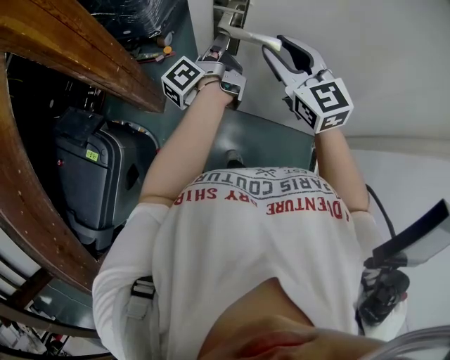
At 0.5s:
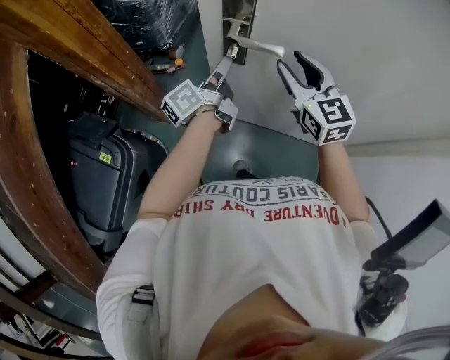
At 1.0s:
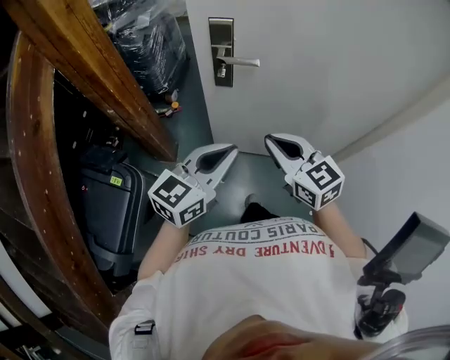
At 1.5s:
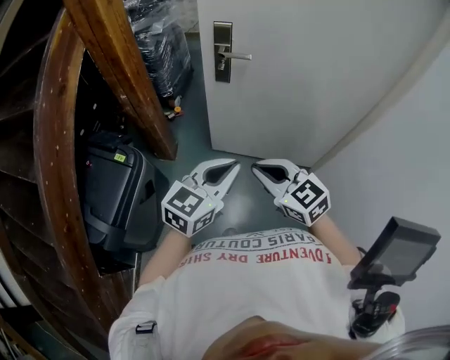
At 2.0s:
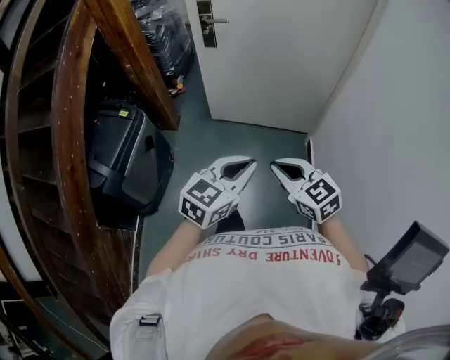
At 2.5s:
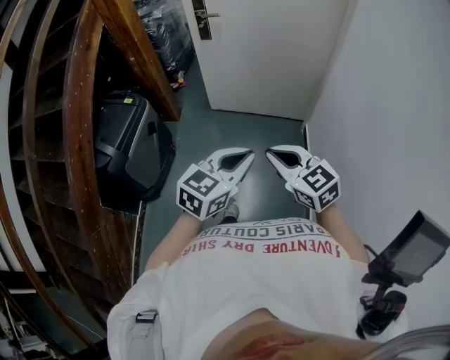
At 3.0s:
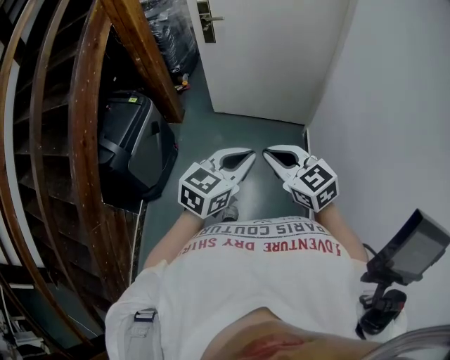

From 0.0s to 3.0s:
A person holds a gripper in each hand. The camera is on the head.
From 0.0s to 1.5s: Both grippers are carried backward, some 50 cm. The right gripper closes up, while the left gripper rotates around the line of its fingers by some 80 degrees, clockwise from behind, and opens, then closes again.
From 1.5s to 3.0s: Both grippers are carried backward and to the right, roughly 50 cm.

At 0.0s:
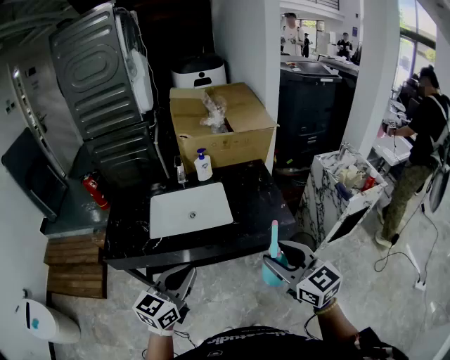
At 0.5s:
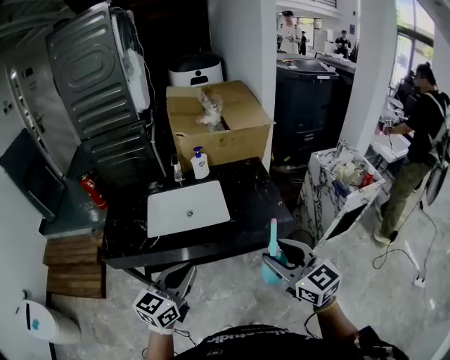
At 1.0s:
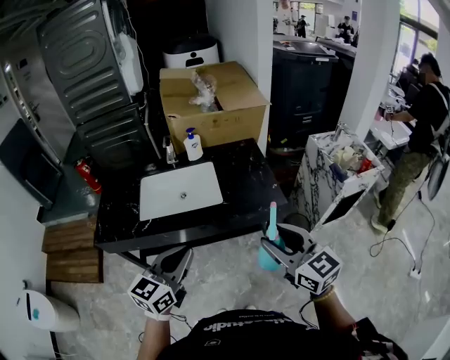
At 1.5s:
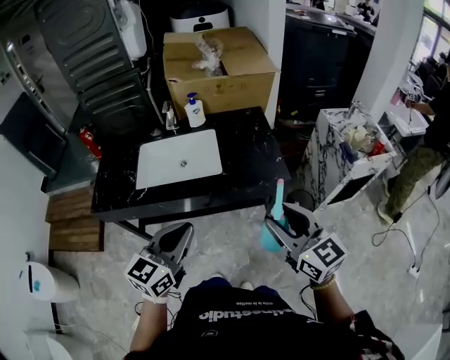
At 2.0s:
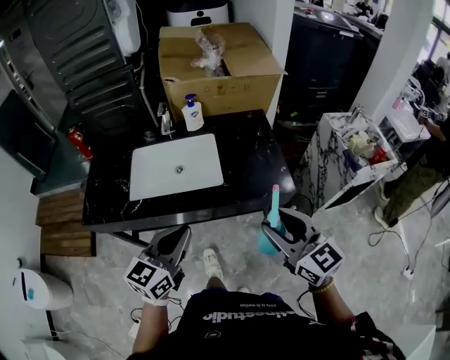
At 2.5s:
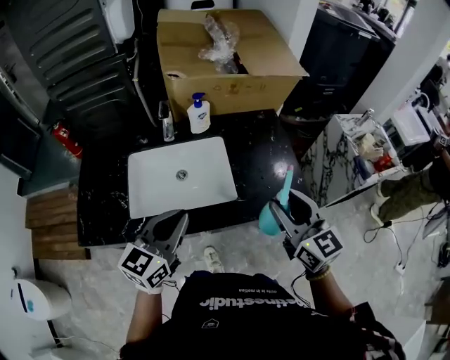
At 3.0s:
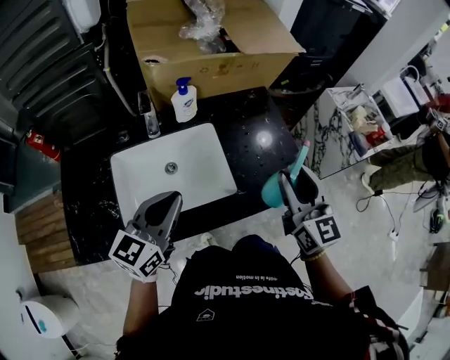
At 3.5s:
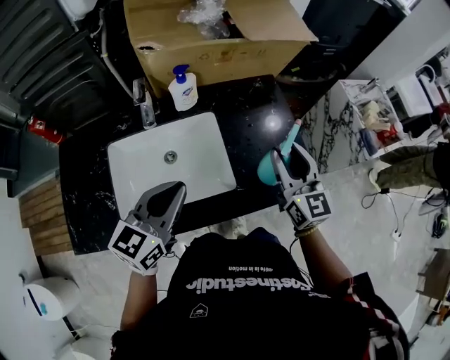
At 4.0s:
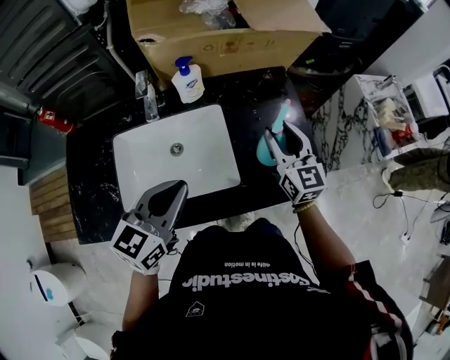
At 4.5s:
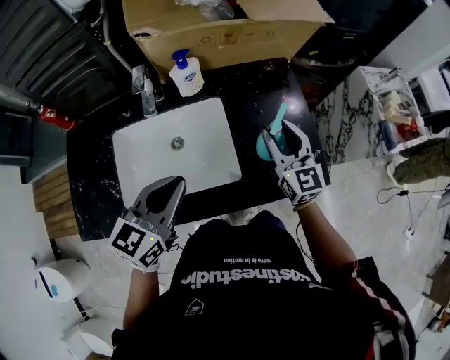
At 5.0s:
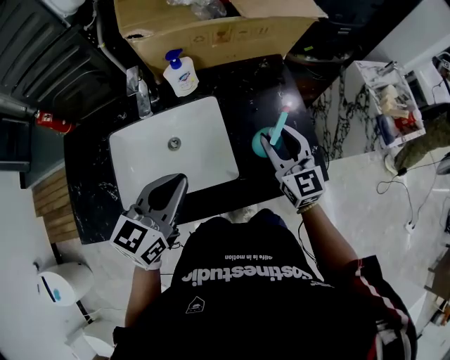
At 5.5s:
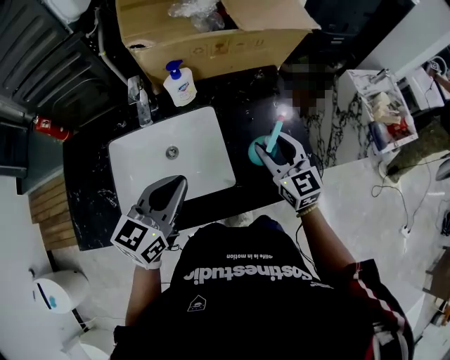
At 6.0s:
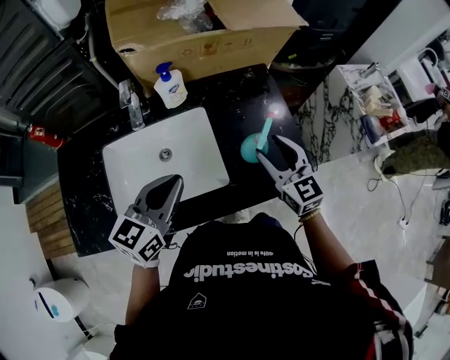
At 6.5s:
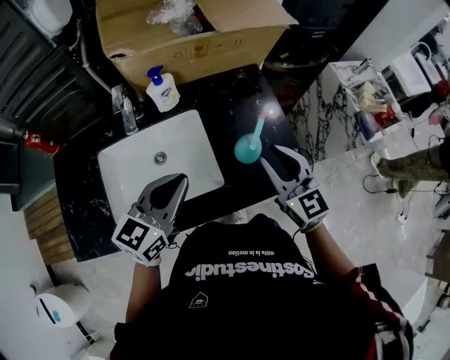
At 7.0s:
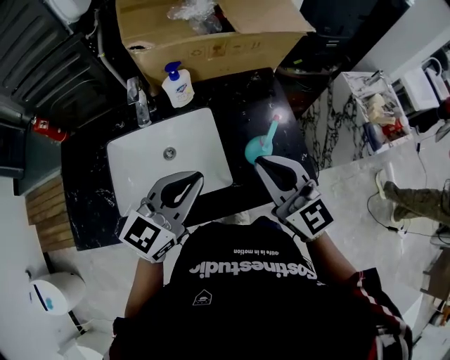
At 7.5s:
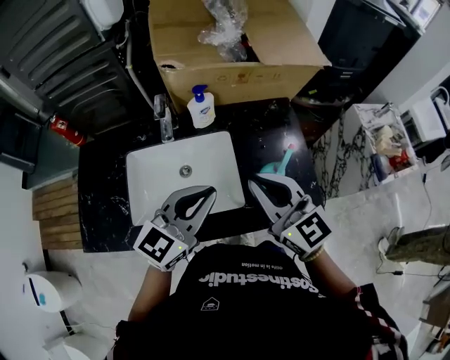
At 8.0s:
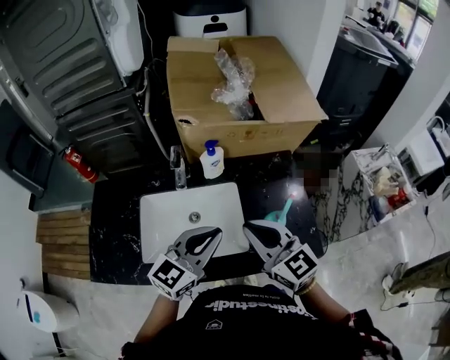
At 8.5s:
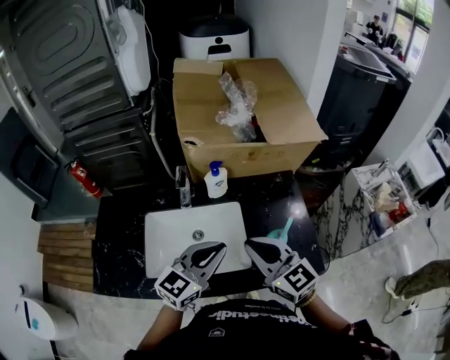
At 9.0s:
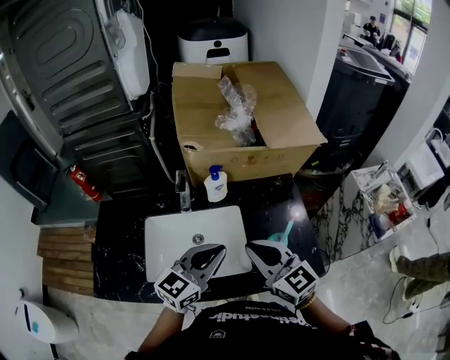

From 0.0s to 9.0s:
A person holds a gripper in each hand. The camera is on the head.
From 0.0s to 2.0s: Both grippers move forward, about 10 cm.
From 2.0s to 4.5s: The two grippers go about 30 cm forward.
From 4.5s to 7.0s: The left gripper travels to the right by roughly 5 cm; the right gripper shifts some 15 cm backward and upward, and closes.
From 7.0s to 9.0s: The right gripper goes some 10 cm to the left.

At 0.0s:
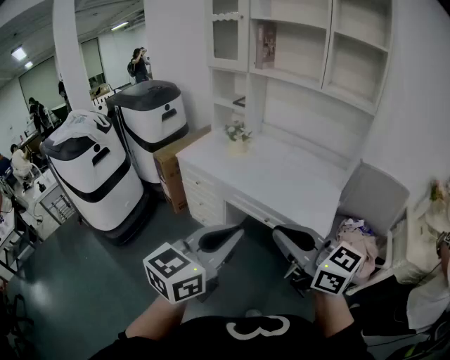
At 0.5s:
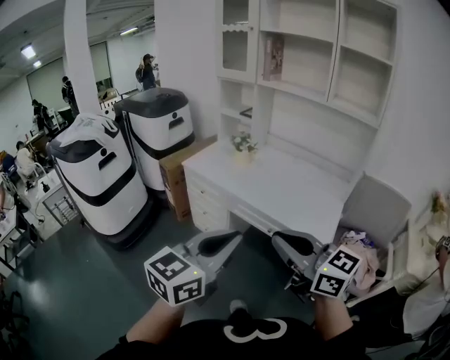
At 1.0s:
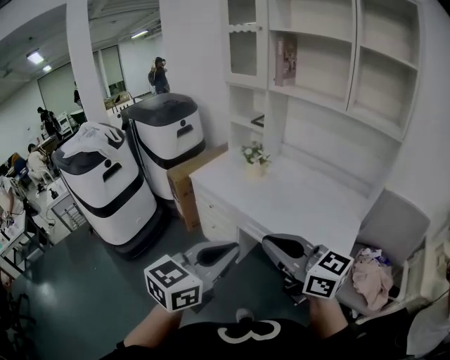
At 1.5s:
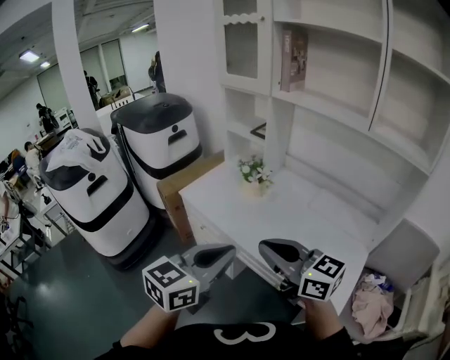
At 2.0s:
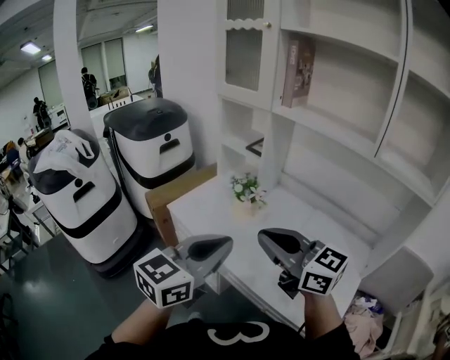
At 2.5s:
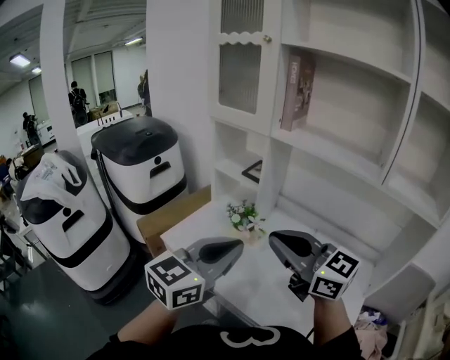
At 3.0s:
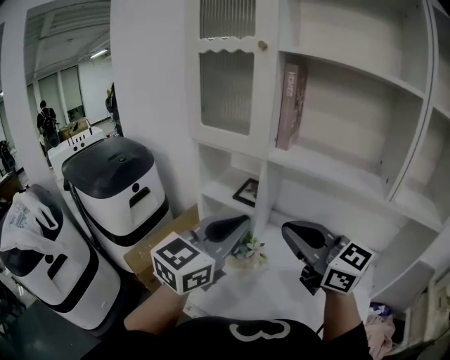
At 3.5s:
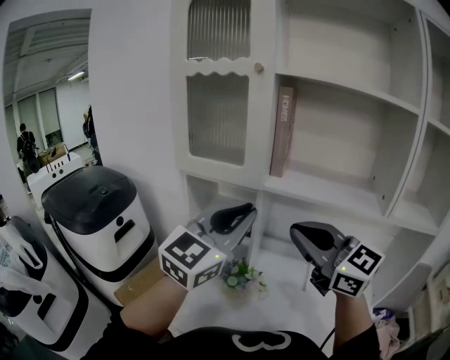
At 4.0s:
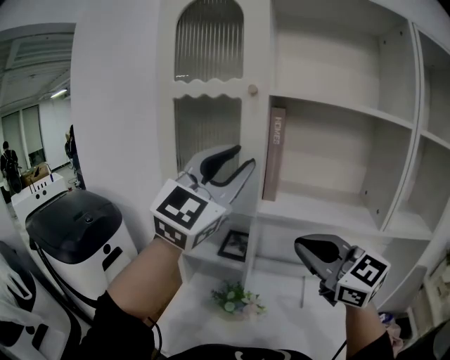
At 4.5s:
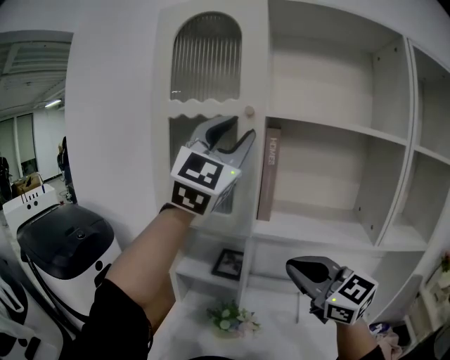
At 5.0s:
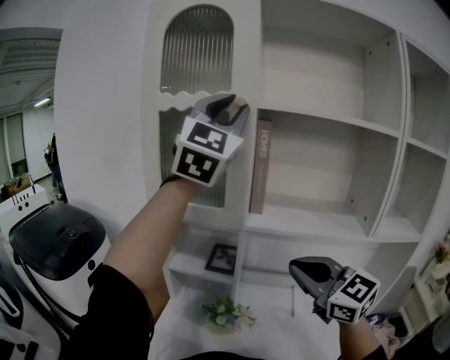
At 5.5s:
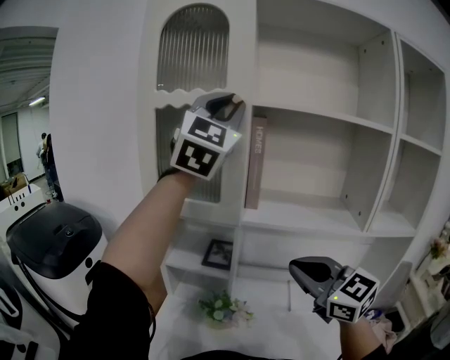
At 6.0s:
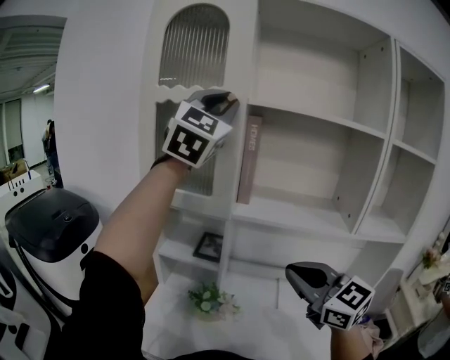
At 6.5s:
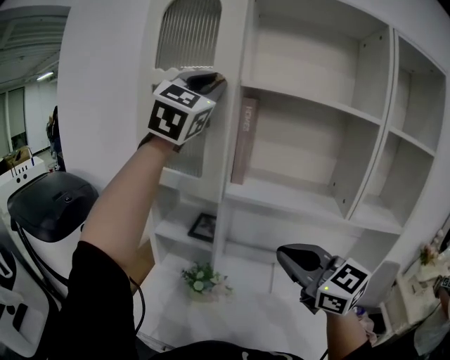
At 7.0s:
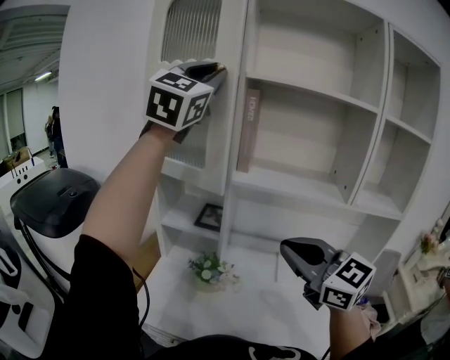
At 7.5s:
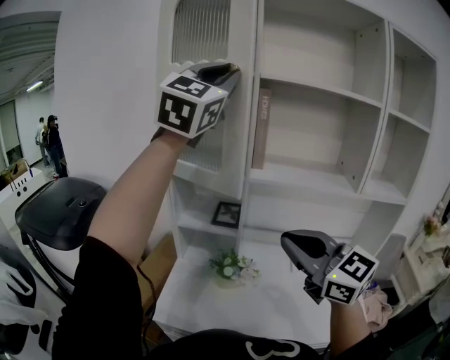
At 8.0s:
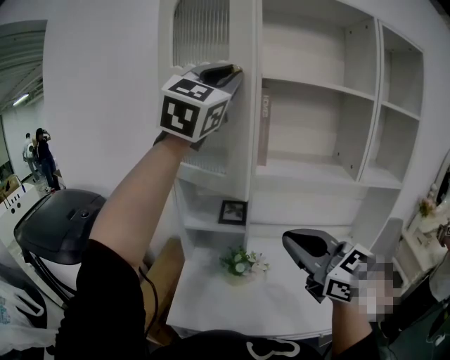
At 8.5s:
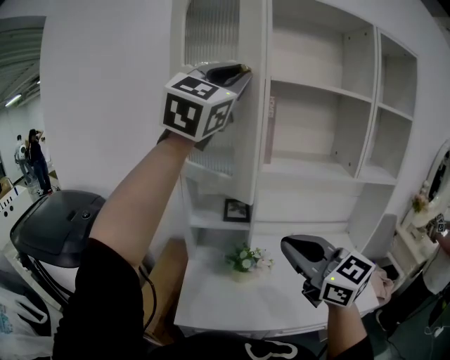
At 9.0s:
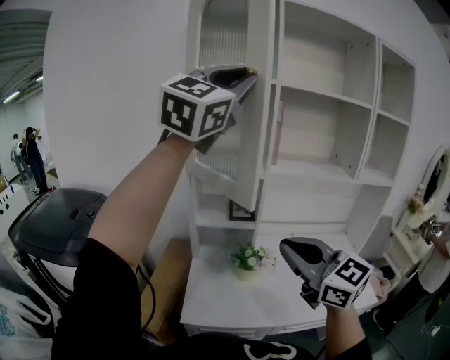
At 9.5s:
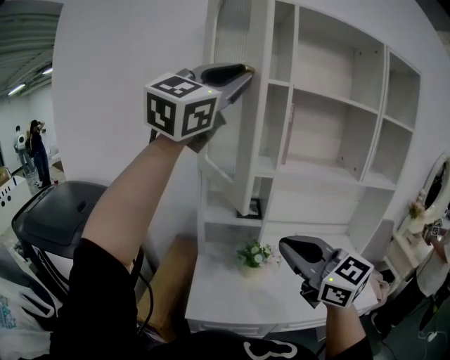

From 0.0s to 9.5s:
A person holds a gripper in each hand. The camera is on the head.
From 0.0s to 2.0s: The two grippers go some 40 cm forward.
From 2.0s to 4.0s: The right gripper ends up about 35 cm from where it was, and swivels approximately 40 degrees. The left gripper ends up approximately 50 cm from where it was, turns by approximately 50 degrees, and opens.
From 4.0s to 5.5s: The left gripper is displaced upward and forward by about 15 cm.
From 5.5s to 7.5s: Both grippers travel together backward and to the left, some 10 cm.
From 7.5s to 9.5s: The two grippers go some 20 cm to the left and backward. The left gripper swivels about 20 degrees.

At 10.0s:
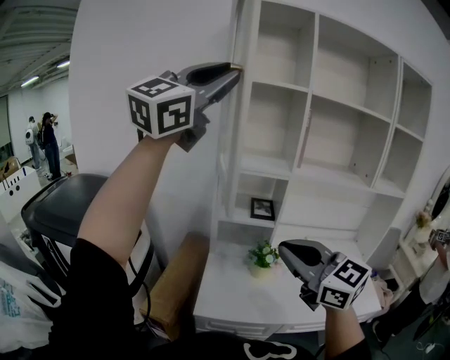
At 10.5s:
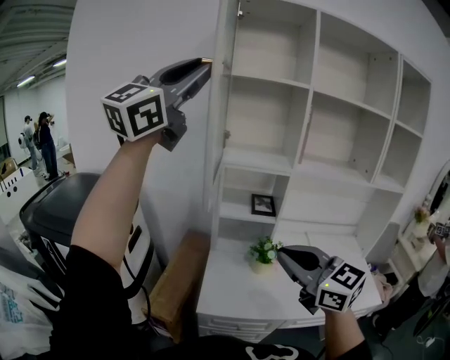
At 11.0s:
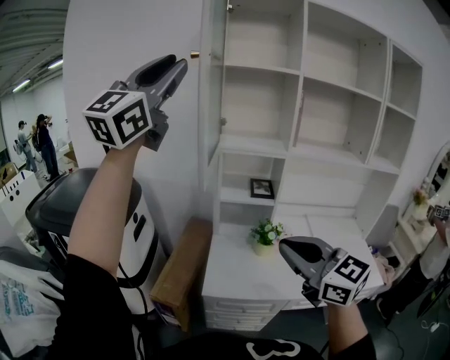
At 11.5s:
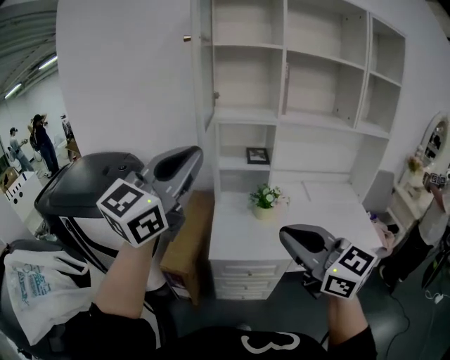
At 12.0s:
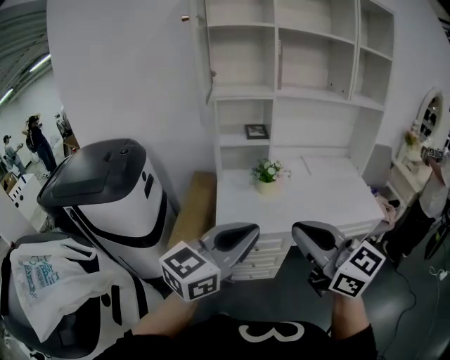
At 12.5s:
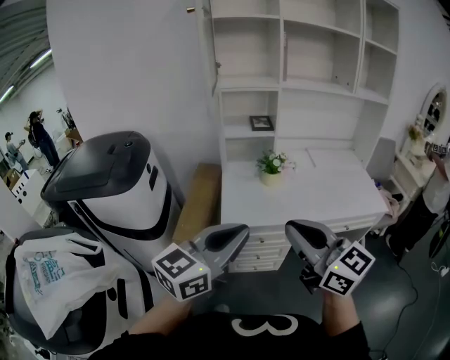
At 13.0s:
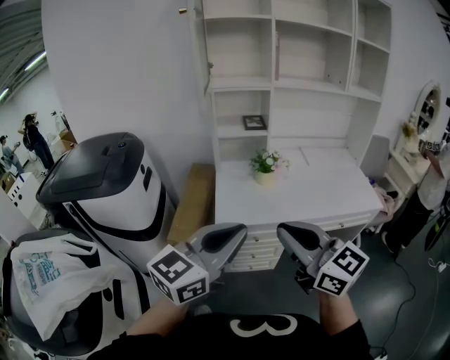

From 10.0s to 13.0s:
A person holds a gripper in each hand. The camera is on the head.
From 10.0s to 11.5s: The right gripper moves backward, approximately 20 cm, while the left gripper is displaced downward and backward by approximately 30 cm, and swivels some 20 degrees.
From 11.5s to 13.0s: The left gripper moves downward and backward, roughly 25 cm, and turns by some 30 degrees. The right gripper is displaced backward and downward by some 10 cm.

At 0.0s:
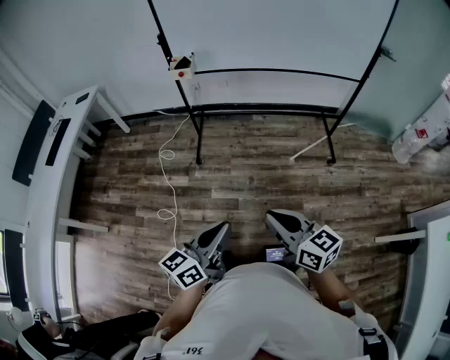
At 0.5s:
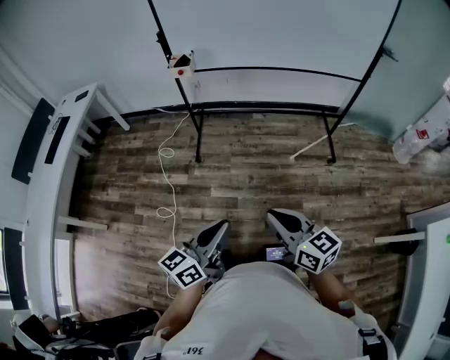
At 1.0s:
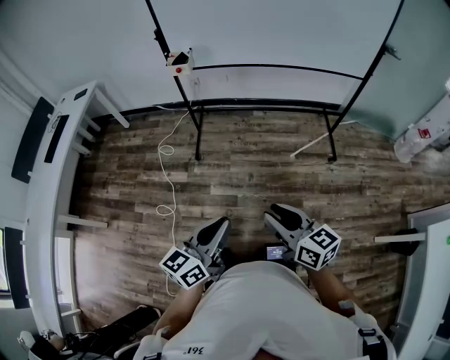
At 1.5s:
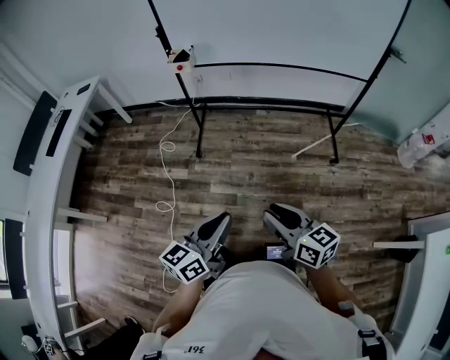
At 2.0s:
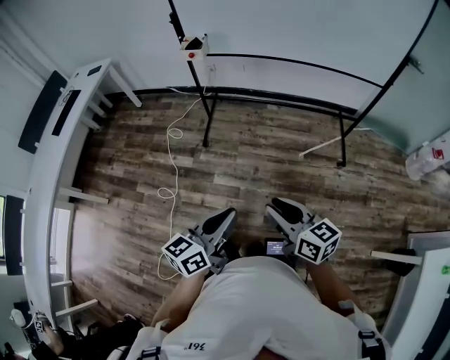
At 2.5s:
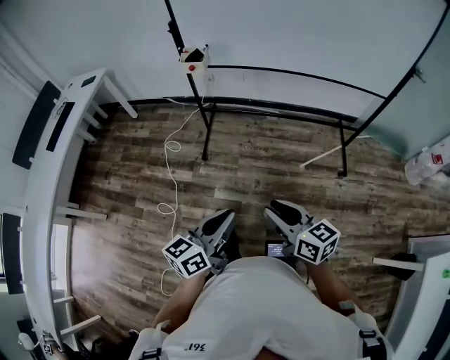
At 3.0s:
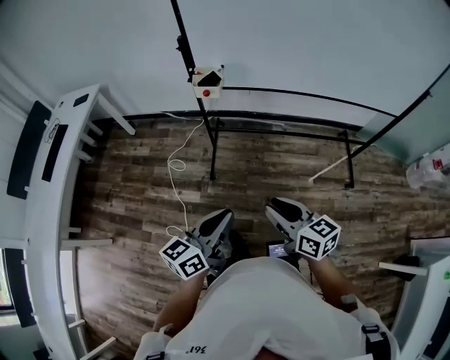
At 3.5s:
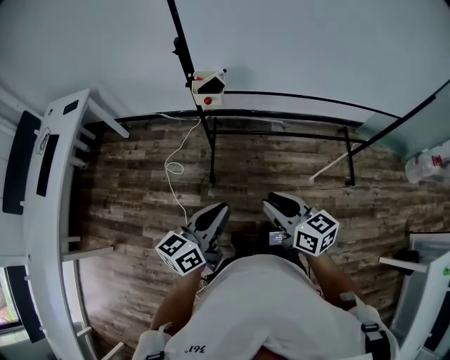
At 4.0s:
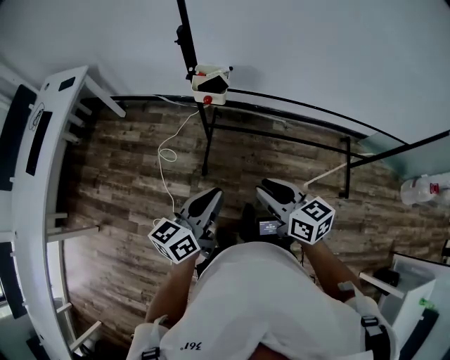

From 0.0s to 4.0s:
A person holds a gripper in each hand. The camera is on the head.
From 0.0s to 2.0s: The left gripper heads to the right, covering roughly 5 cm. Meanwhile the right gripper is displaced to the right and forward by roughly 10 cm, and opens its fingers.
From 2.0s to 4.0s: The two grippers travel together, forward, approximately 50 cm.
